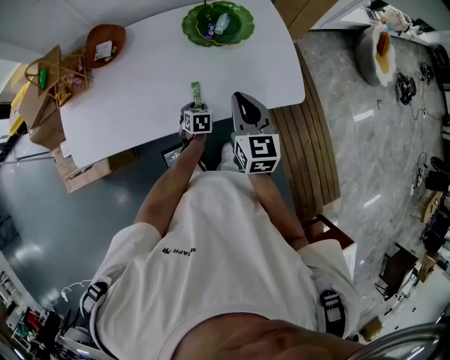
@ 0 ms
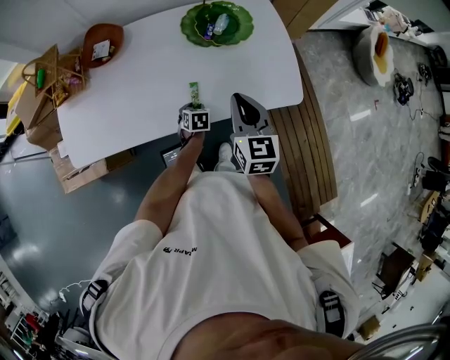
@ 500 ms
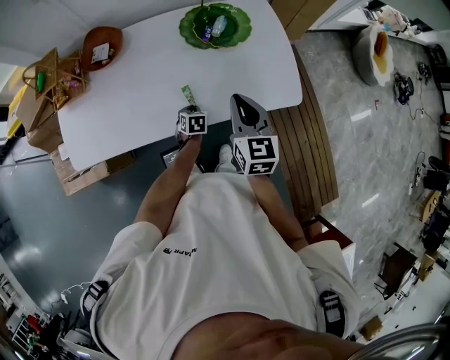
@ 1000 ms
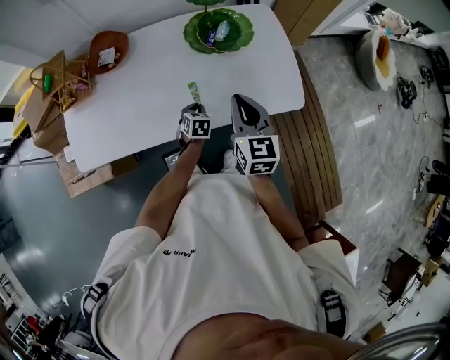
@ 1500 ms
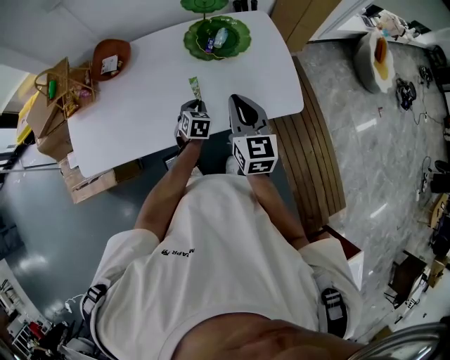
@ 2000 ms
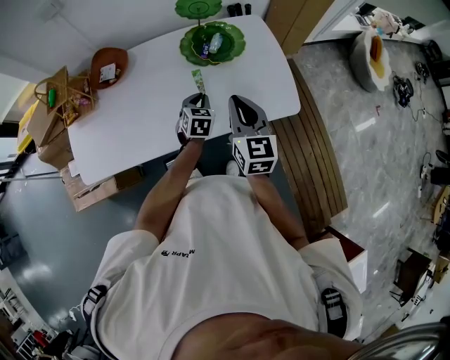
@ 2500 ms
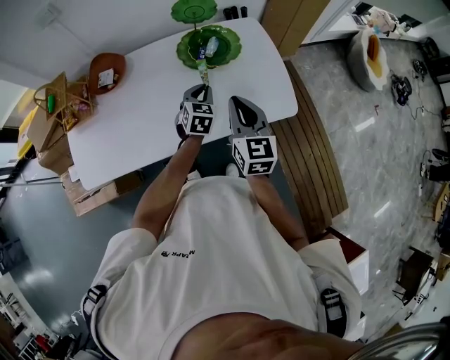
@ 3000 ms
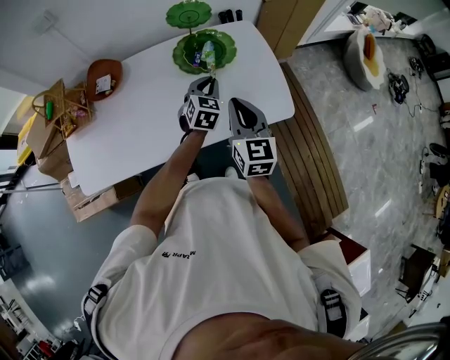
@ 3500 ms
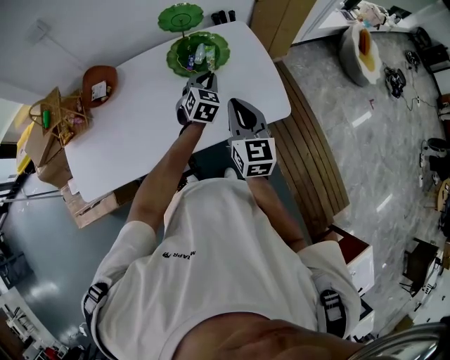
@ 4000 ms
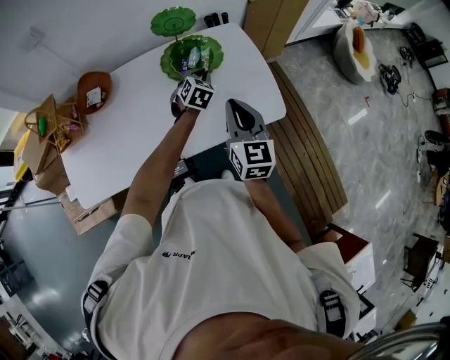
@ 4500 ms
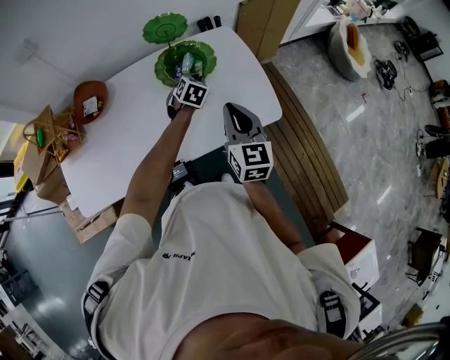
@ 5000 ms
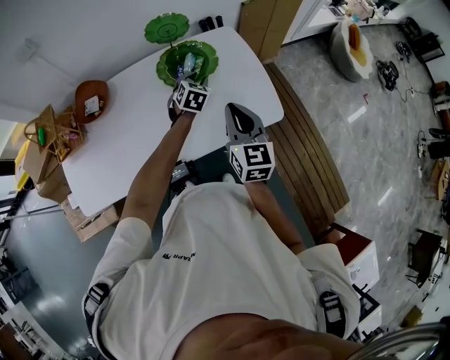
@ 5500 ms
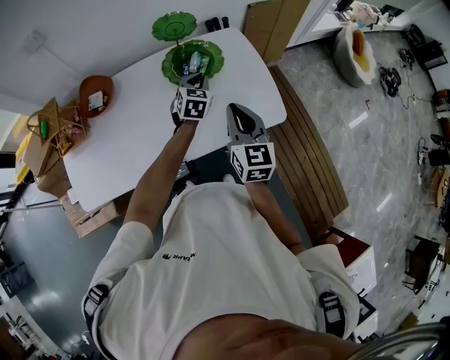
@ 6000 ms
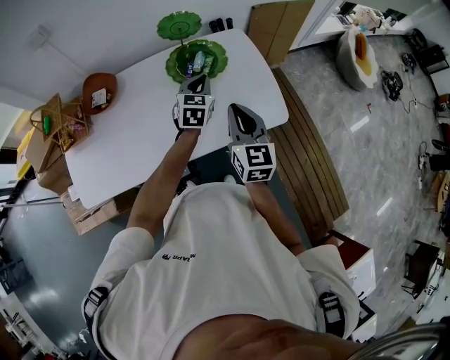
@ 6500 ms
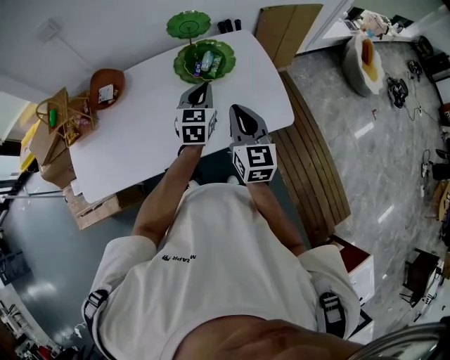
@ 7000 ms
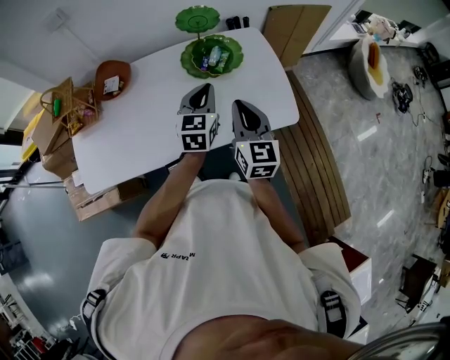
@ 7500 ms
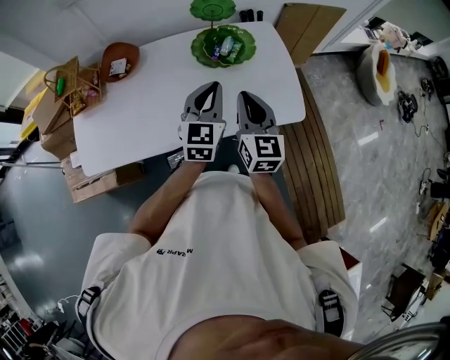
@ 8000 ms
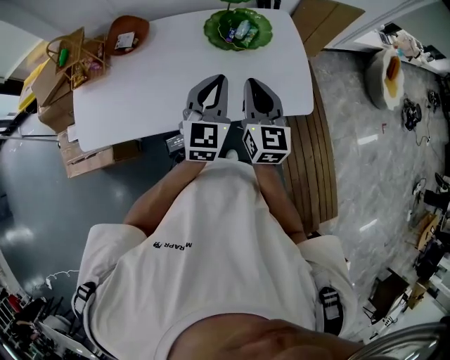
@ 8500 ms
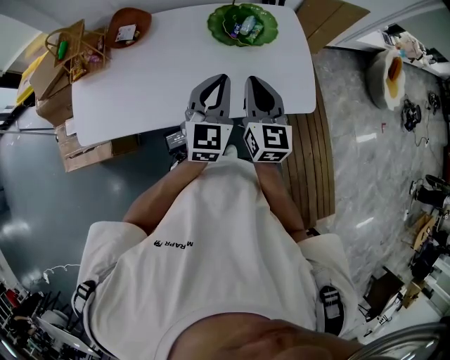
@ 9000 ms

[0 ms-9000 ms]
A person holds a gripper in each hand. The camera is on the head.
0 ms to 2000 ms: The left gripper shifts some 10 cm upward, and closes.
2000 ms to 4500 ms: The right gripper moves to the right, roughly 5 cm. Meanwhile the left gripper travels forward, to the right and upward by approximately 20 cm, and turns by some 20 degrees.
4500 ms to 7000 ms: The left gripper goes approximately 10 cm upward and backward, and turns by some 30 degrees.
7000 ms to 9000 ms: The right gripper travels to the left by roughly 5 cm; the left gripper is displaced backward and to the left by about 10 cm.

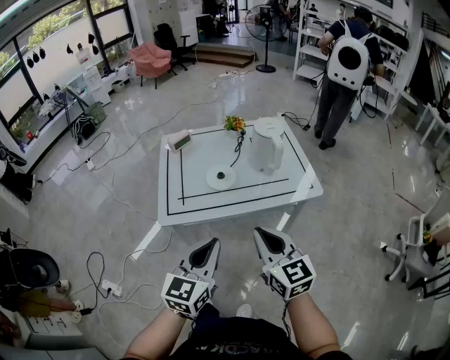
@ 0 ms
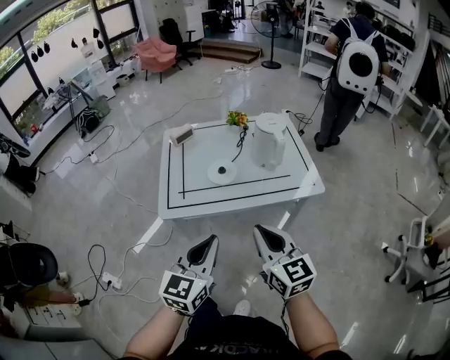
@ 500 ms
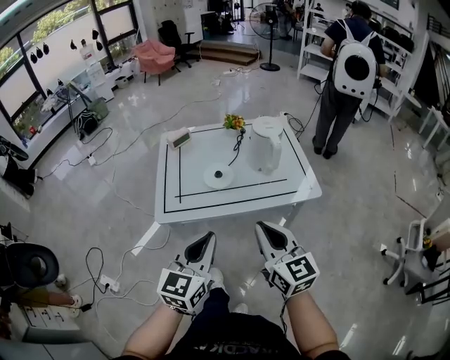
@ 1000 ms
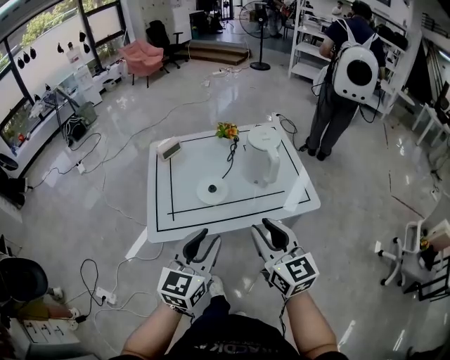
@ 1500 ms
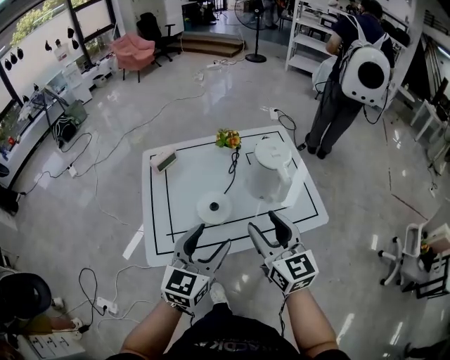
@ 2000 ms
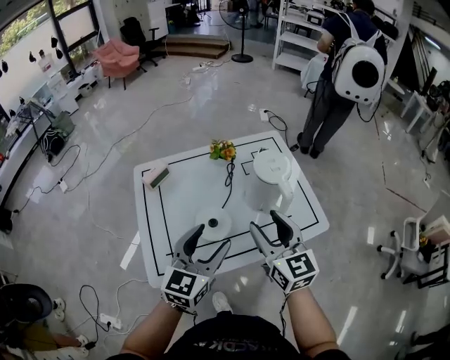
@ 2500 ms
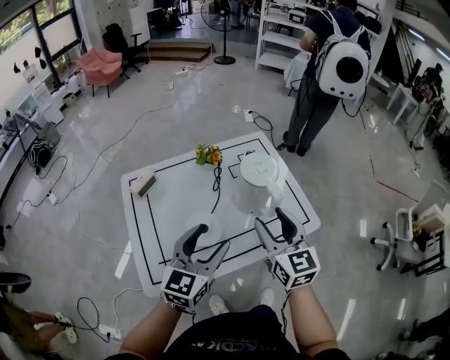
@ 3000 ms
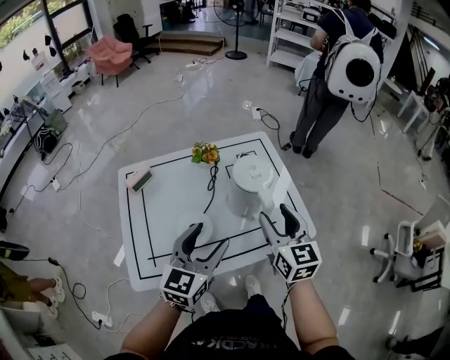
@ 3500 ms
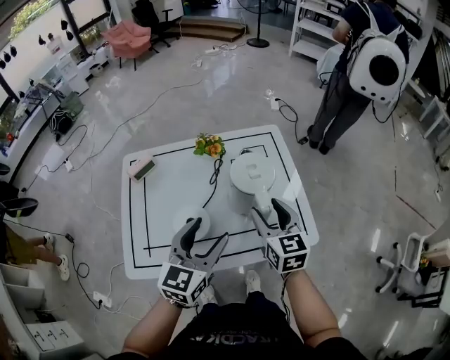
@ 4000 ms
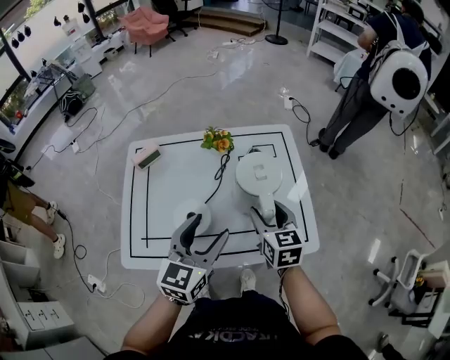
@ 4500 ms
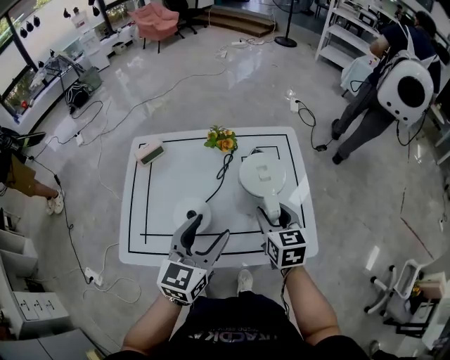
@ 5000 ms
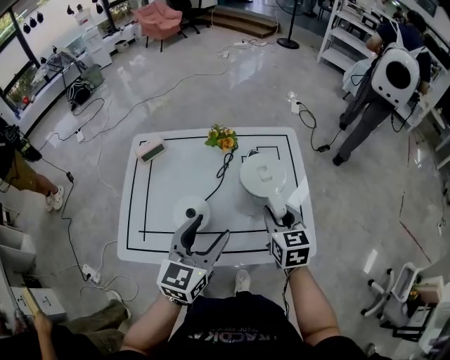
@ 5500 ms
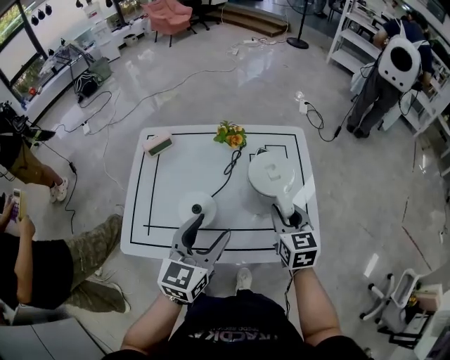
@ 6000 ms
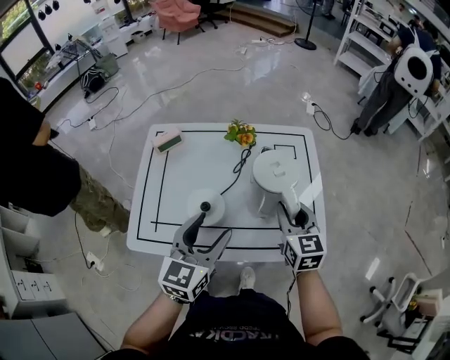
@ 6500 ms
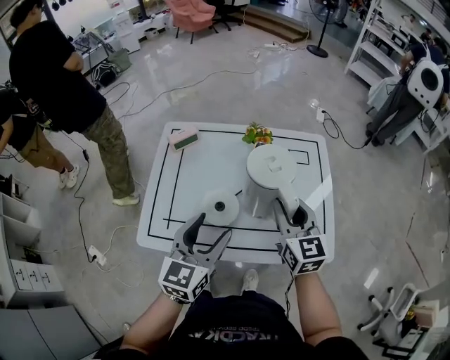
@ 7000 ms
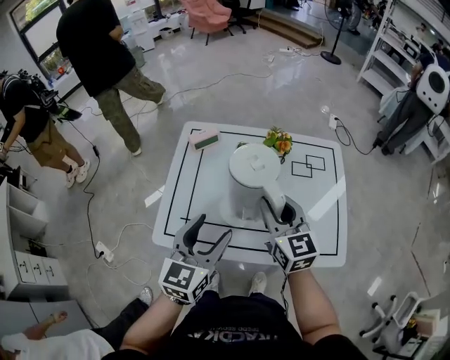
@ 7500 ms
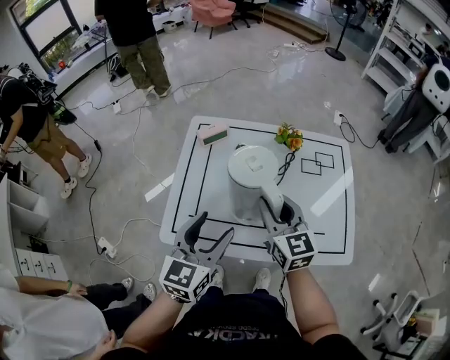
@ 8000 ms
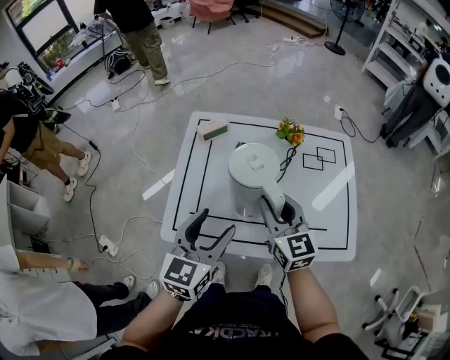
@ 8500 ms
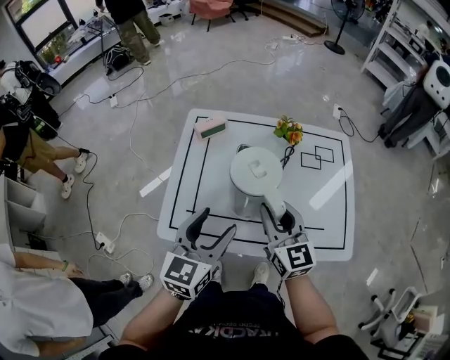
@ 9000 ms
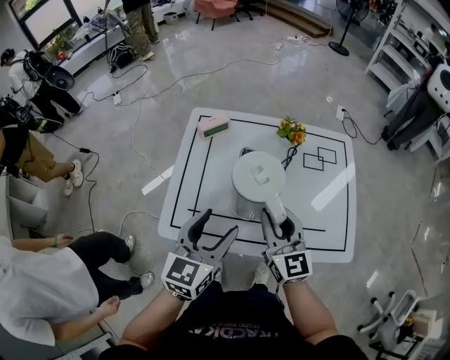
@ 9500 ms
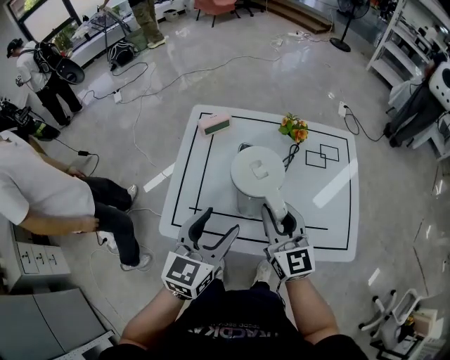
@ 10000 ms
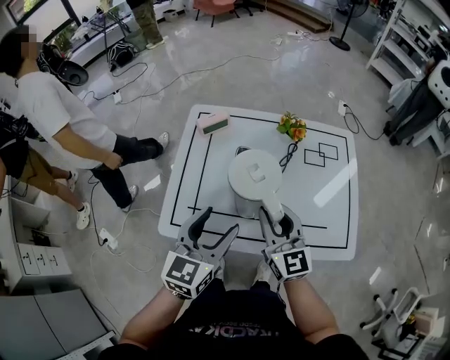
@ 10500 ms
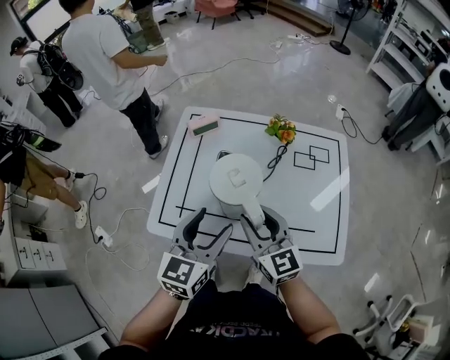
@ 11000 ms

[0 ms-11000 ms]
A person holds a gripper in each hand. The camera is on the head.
0 ms to 2000 ms: Both grippers move forward, approximately 20 cm. The right gripper opens its fingers. Meanwhile the left gripper opens up.
2000 ms to 3500 ms: The left gripper travels forward by roughly 10 cm. Meanwhile the right gripper moves forward and to the right, about 15 cm.
3500 ms to 5500 ms: The right gripper shifts approximately 10 cm downward and forward, turns by about 20 degrees, and closes its fingers.
5500 ms to 7500 ms: The left gripper moves to the left, approximately 15 cm, while the right gripper goes approximately 20 cm to the left and upward, and swivels roughly 20 degrees.
7500 ms to 9000 ms: The right gripper ends up roughly 5 cm from where it was.
9000 ms to 11000 ms: There are only small adjustments of the grippers.

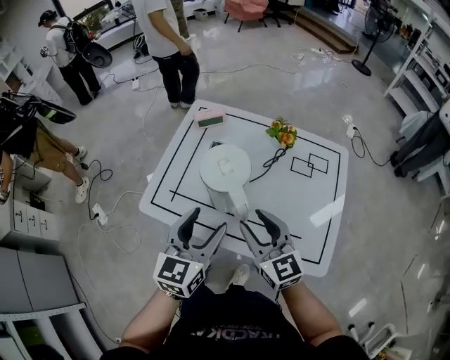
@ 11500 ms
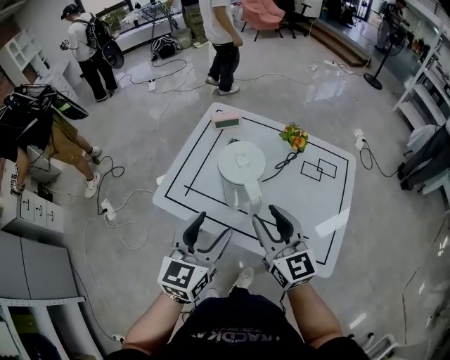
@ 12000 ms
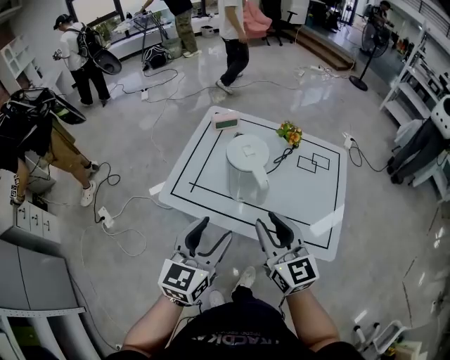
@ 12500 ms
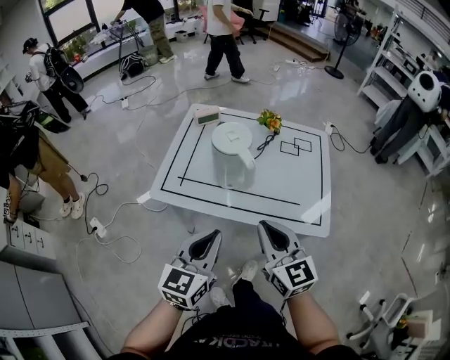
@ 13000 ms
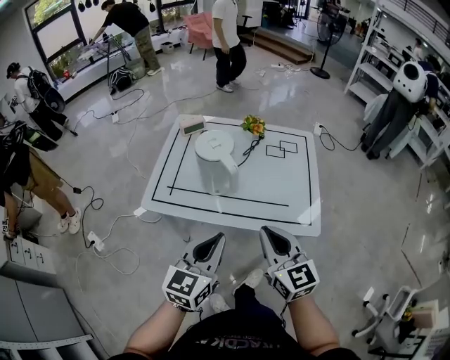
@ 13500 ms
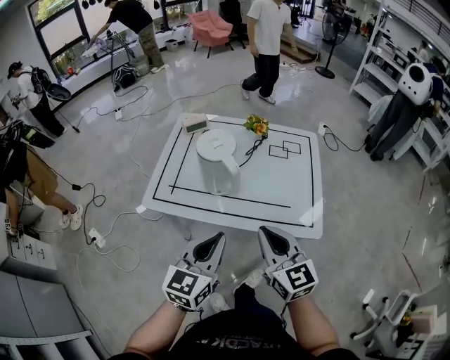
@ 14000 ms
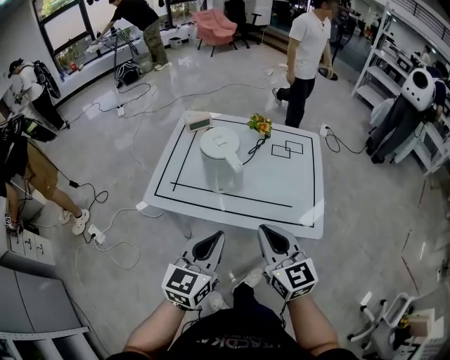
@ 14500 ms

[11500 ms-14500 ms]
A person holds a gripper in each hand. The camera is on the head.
11500 ms to 13000 ms: The grippers both shift backward by roughly 15 cm. The right gripper closes up. Meanwhile the left gripper closes.
13000 ms to 14500 ms: There are only small adjustments of the grippers.

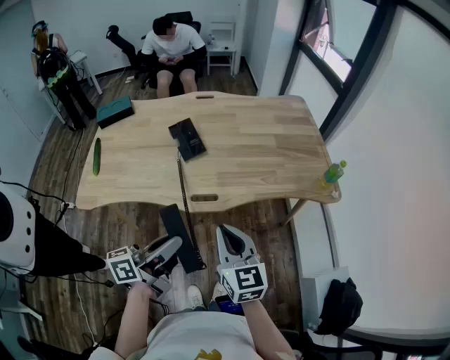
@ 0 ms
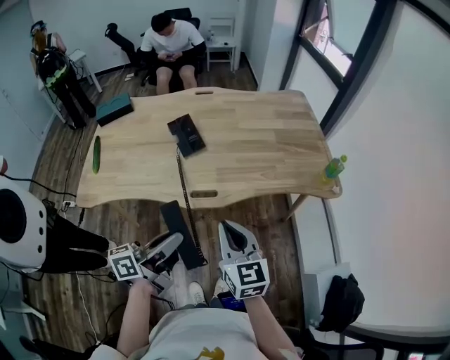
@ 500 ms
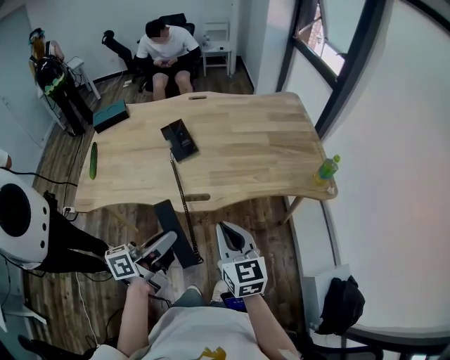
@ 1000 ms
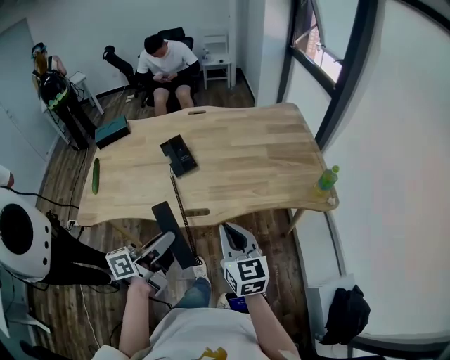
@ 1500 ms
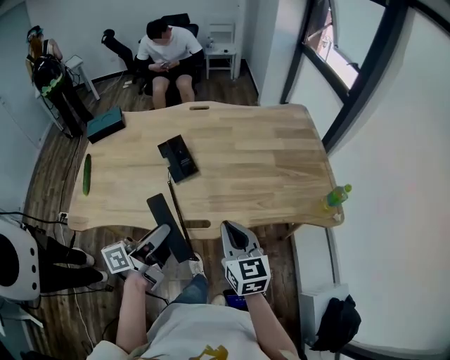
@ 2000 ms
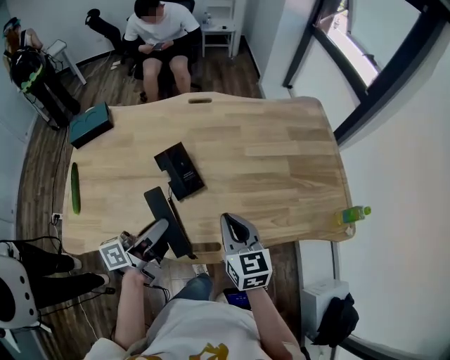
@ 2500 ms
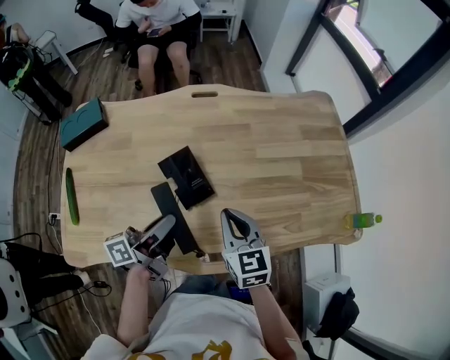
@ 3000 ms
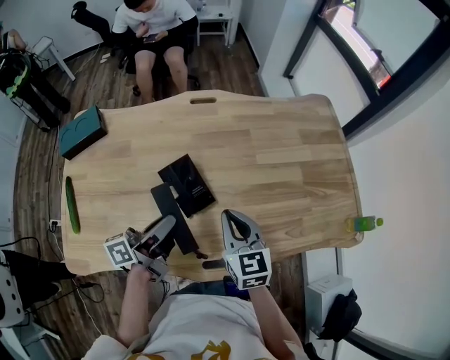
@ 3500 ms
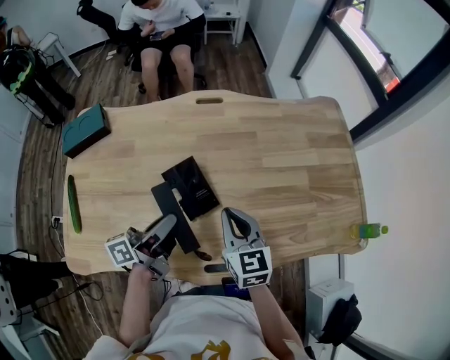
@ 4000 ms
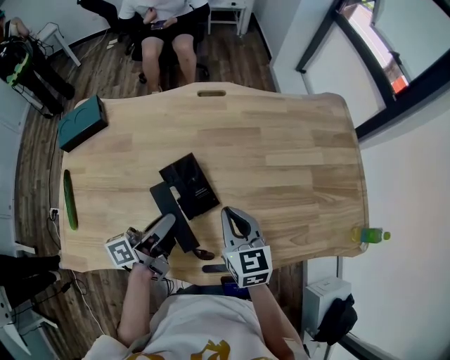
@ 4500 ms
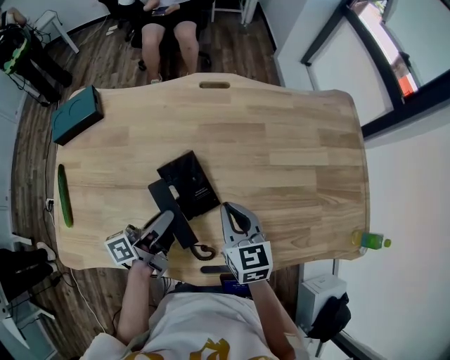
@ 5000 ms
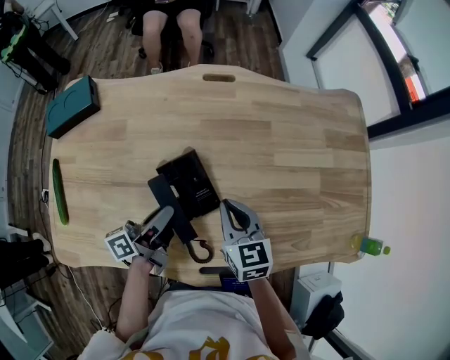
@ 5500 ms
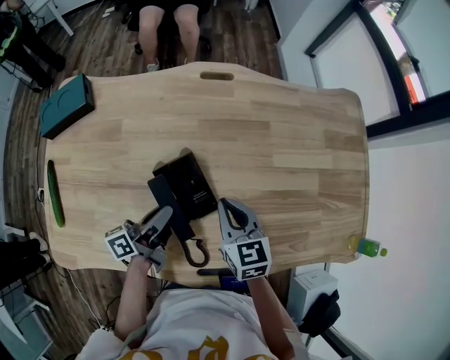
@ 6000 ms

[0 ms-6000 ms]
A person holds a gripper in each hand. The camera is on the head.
0 ms to 2000 ms: Both grippers move forward, roughly 15 cm.
2000 ms to 4000 ms: Both grippers travel together forward and to the left, some 25 cm.
4000 ms to 6000 ms: The right gripper is displaced downward and forward by about 10 cm, while the left gripper is displaced downward by about 10 cm.
